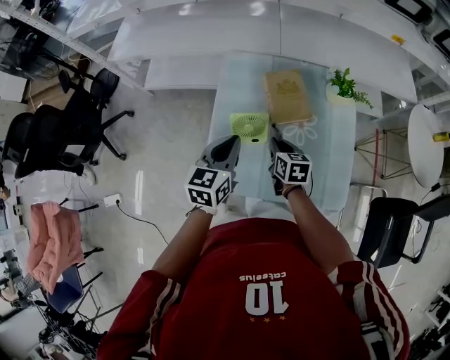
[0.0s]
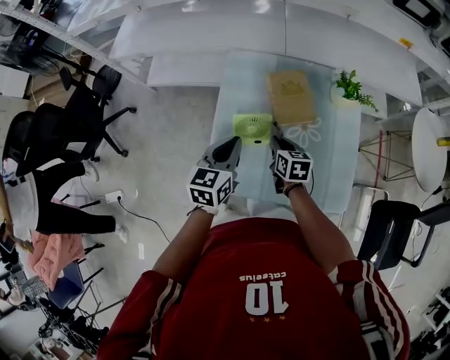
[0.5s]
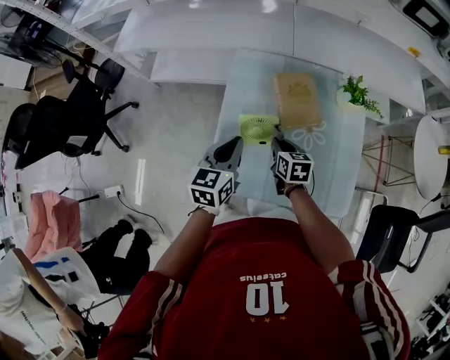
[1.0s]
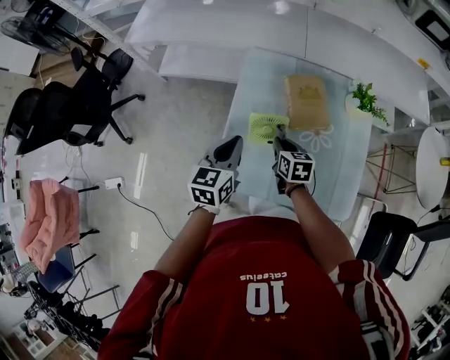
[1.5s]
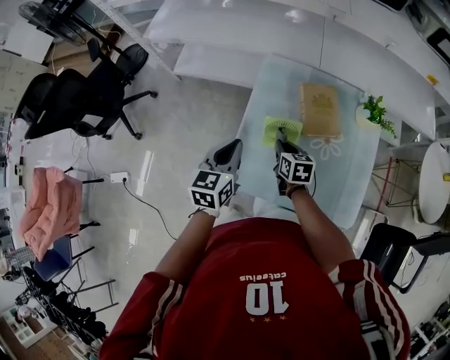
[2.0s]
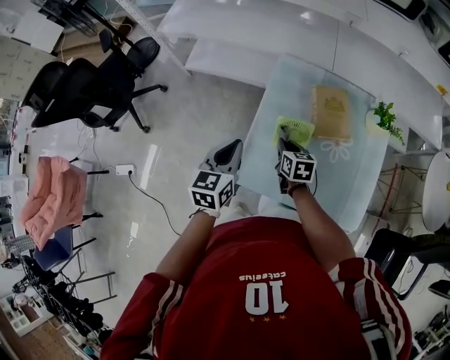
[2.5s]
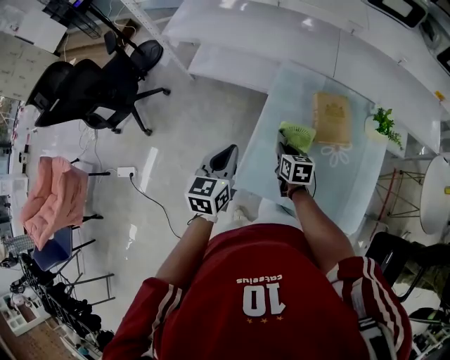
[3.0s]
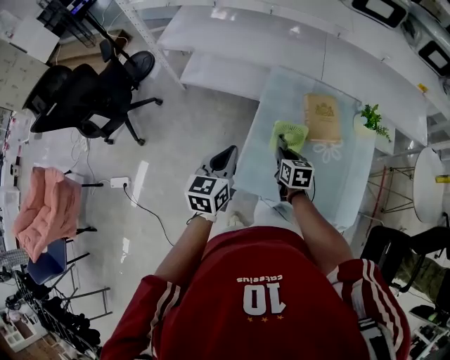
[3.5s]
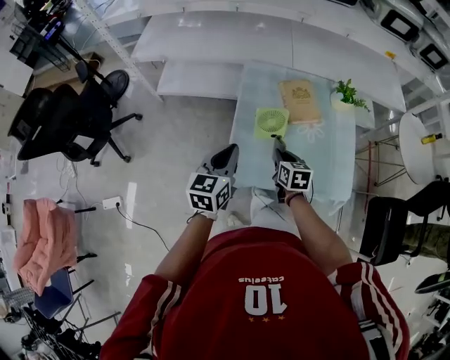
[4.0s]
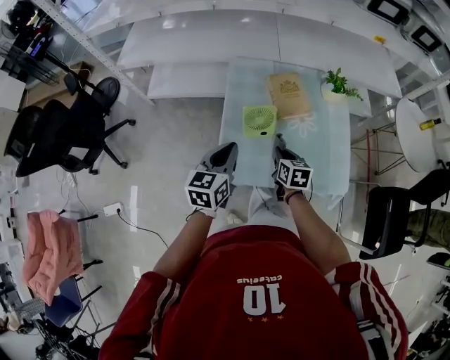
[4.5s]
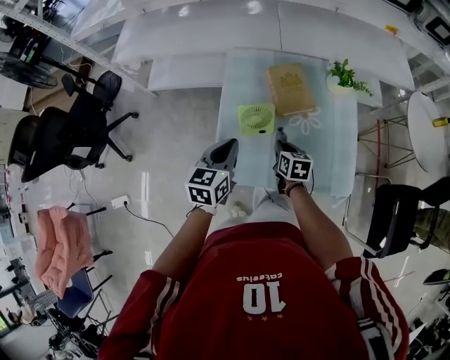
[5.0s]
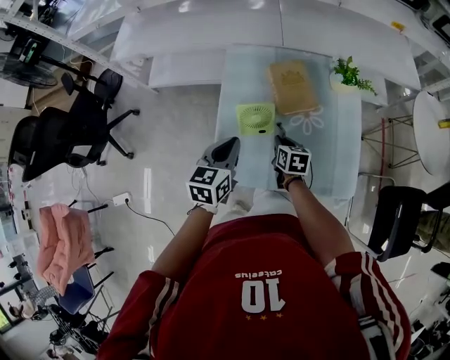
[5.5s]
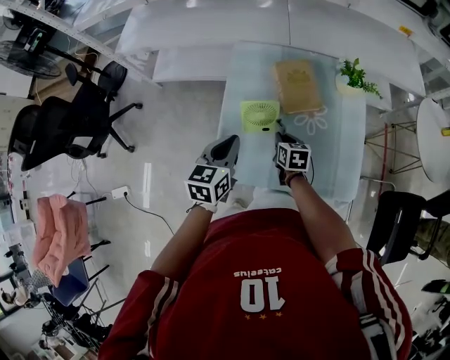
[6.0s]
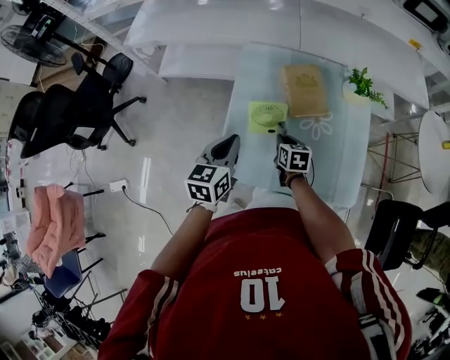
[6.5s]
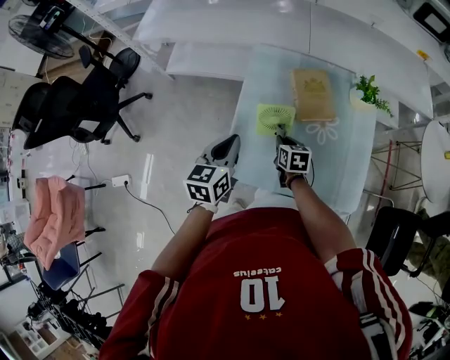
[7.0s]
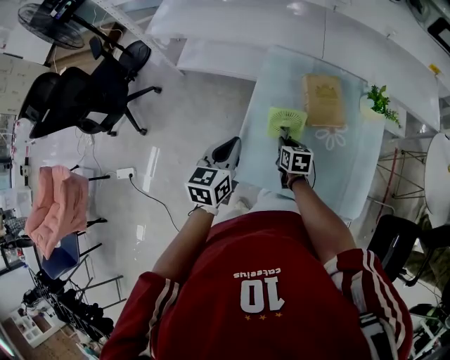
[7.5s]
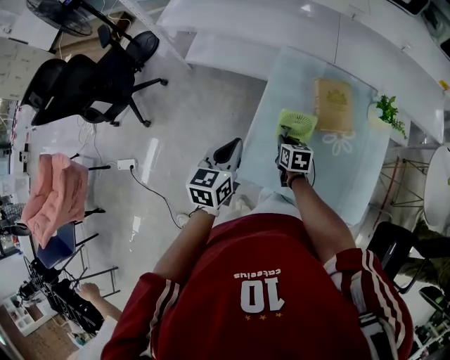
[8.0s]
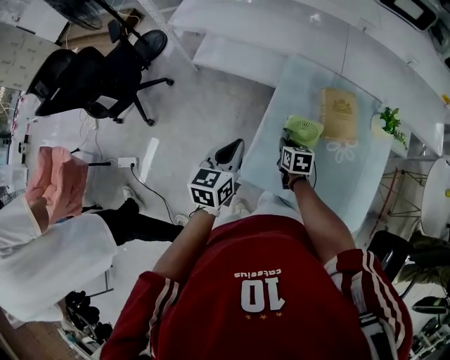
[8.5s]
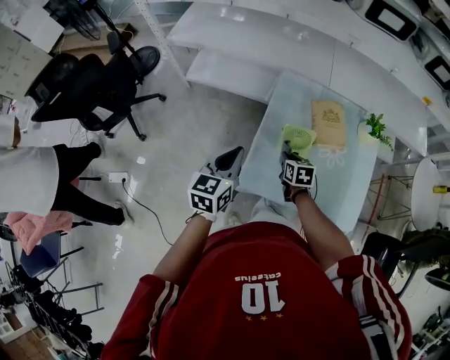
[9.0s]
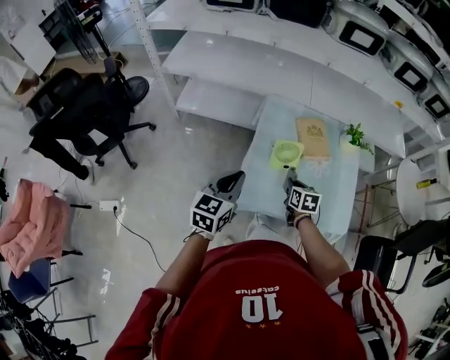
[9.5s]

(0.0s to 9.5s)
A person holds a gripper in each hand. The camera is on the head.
0.0s - 2.0s: The two grippers go roughly 10 cm to the left.
2.0s - 4.0s: The two grippers go about 10 cm backward and upward.
4.0s - 5.5s: The left gripper is displaced to the right, forward and downward by some 15 cm. Meanwhile the right gripper heads downward, forward and to the right, covering about 15 cm.
5.5s - 7.5s: Both grippers move to the left, some 10 cm.
7.5s - 9.5s: The right gripper goes approximately 10 cm upward and backward, while the left gripper moves backward, upward and to the left, some 15 cm.

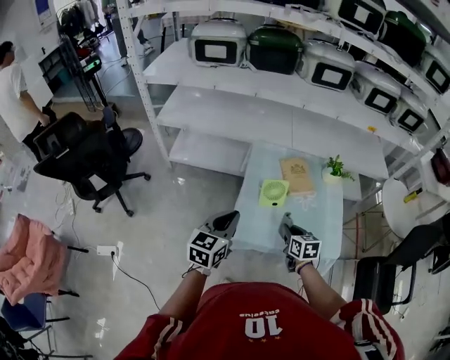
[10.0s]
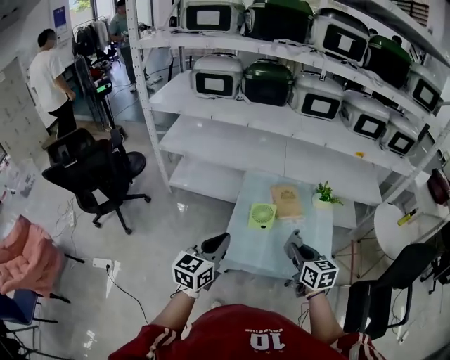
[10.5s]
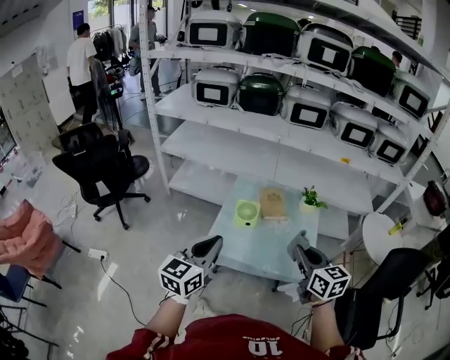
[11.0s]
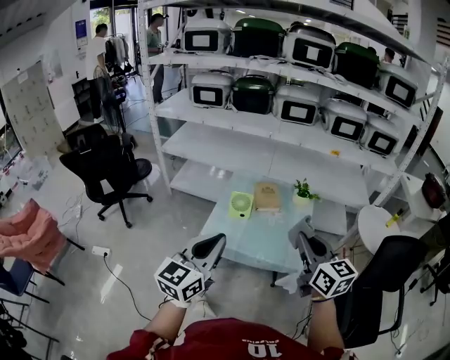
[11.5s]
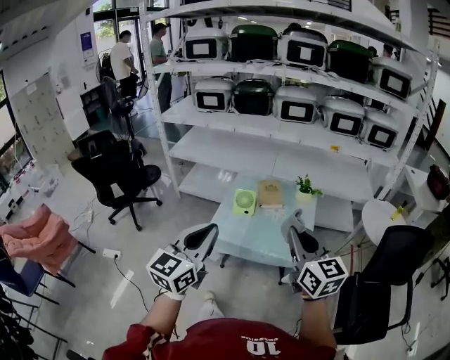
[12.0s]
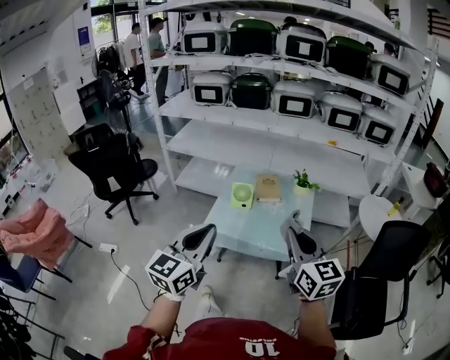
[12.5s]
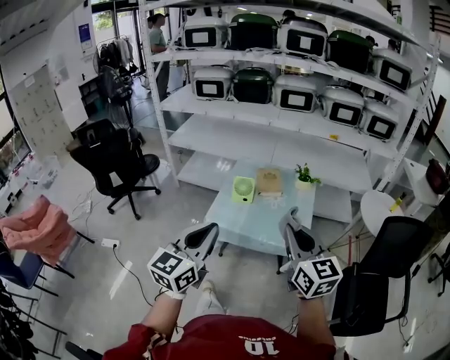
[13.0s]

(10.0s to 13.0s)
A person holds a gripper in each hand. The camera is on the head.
10.0s - 11.5s: The right gripper travels upward, backward and to the right by approximately 40 cm, and tips its fingers upward by some 40 degrees. Meanwhile the left gripper goes roughly 35 cm backward, to the right and upward, and rotates some 20 degrees.
11.5s - 13.0s: Both grippers move backward, roughly 10 cm.

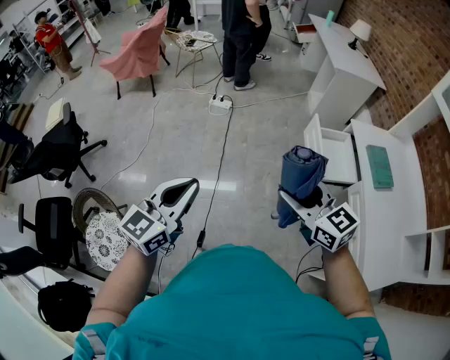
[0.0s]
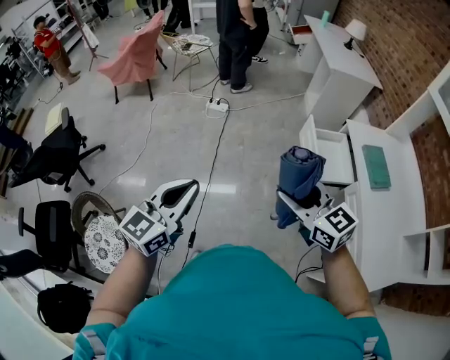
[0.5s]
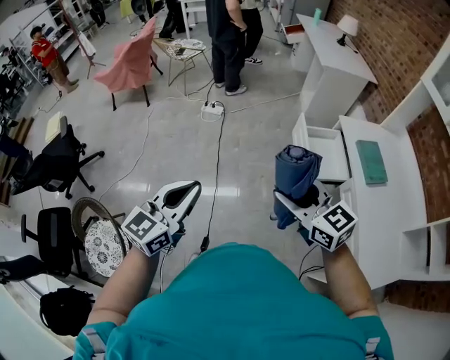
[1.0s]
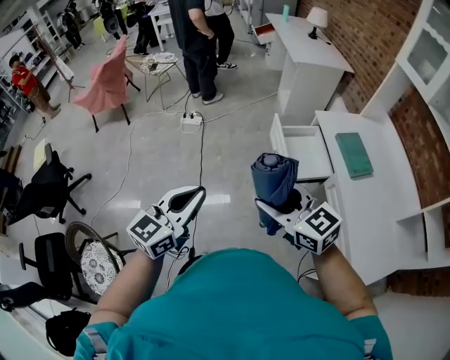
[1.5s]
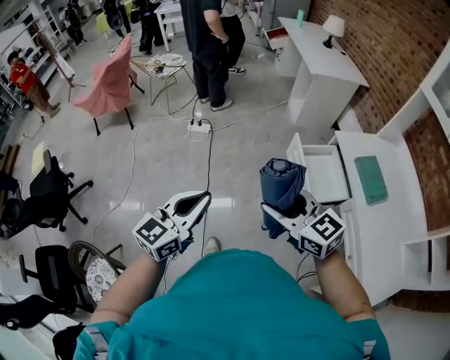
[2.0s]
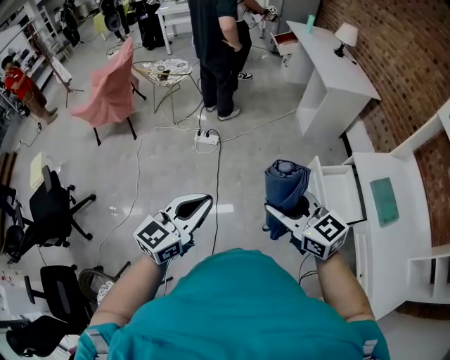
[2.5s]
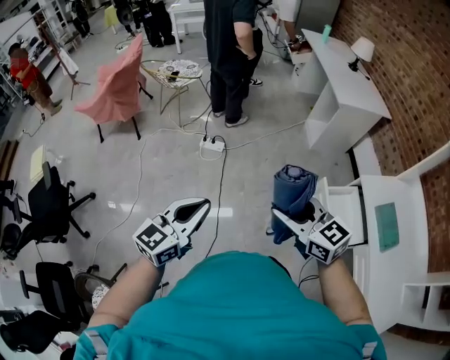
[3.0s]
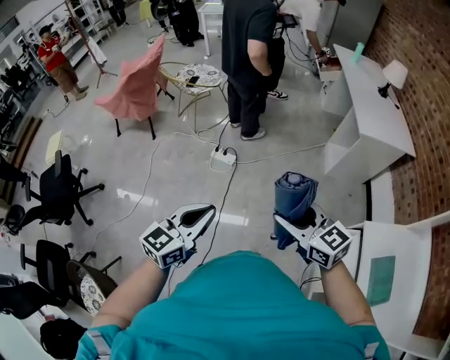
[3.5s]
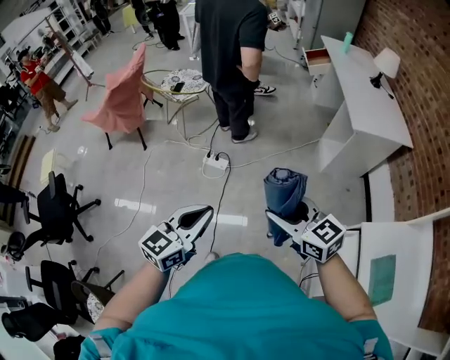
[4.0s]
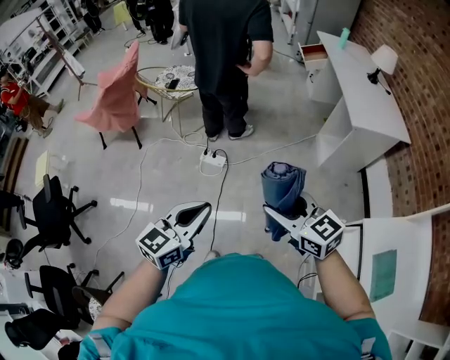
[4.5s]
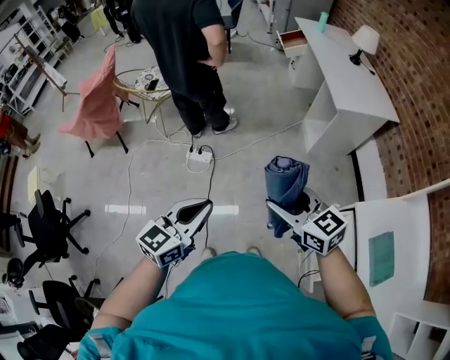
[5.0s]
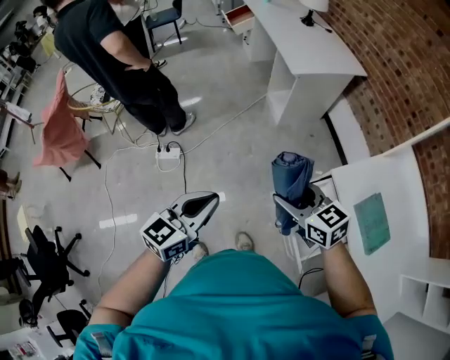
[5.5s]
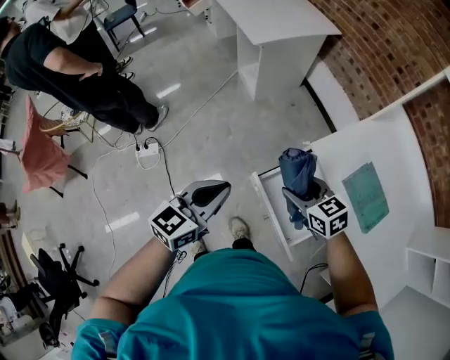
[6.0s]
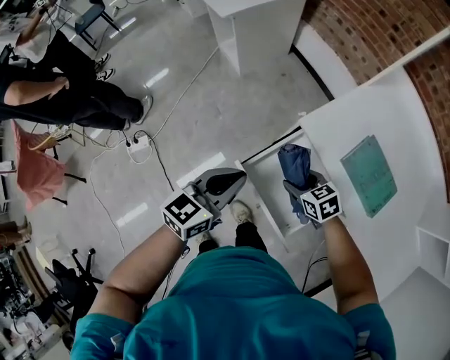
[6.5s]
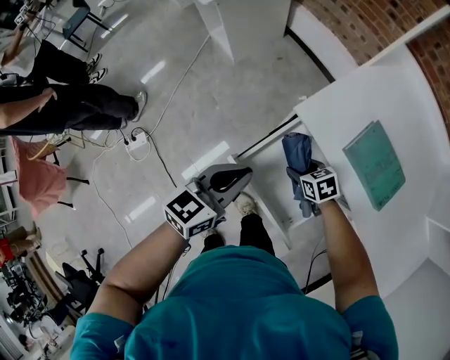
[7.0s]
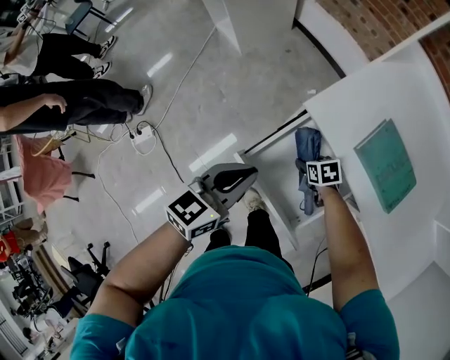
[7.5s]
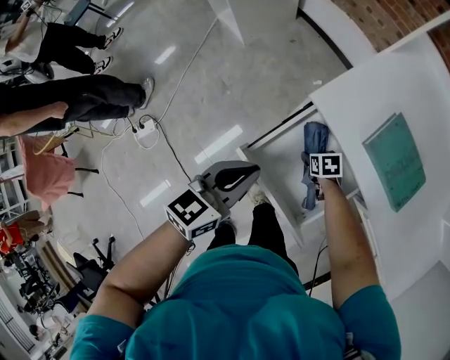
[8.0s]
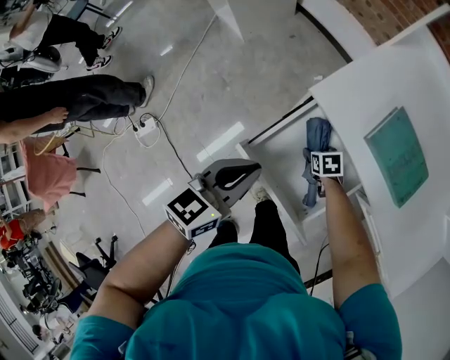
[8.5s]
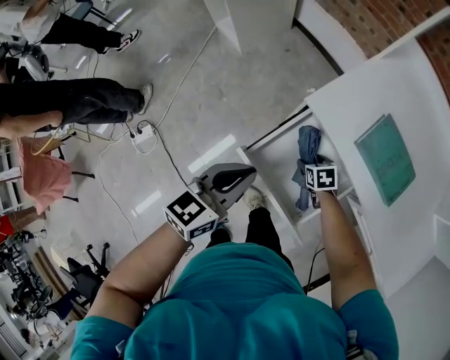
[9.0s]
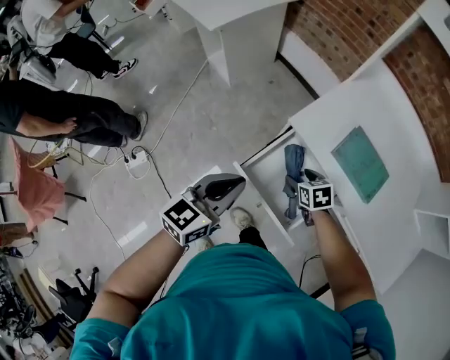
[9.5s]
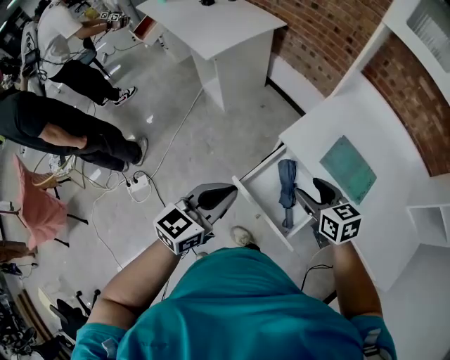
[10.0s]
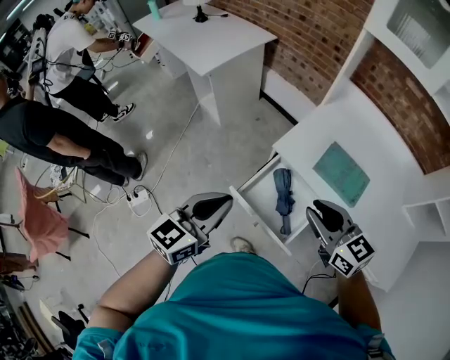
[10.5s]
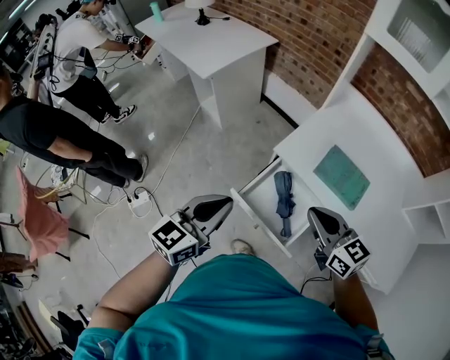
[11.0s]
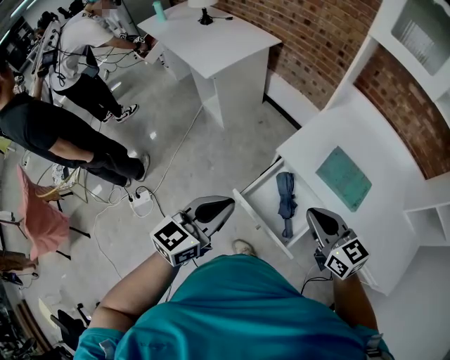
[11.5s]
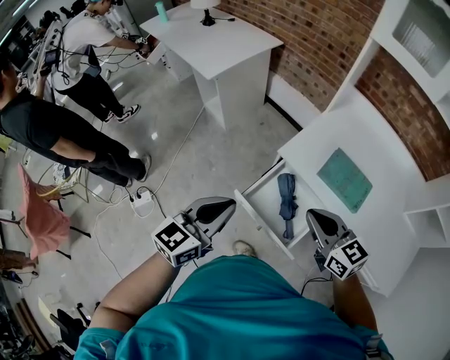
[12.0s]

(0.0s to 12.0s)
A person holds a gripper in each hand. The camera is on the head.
0.0s - 2.0s: The left gripper shifts approximately 20 cm forward and to the right. The right gripper moves forward, about 10 cm.
2.0s - 4.0s: The two grippers go some 40 cm forward.
4.0s - 6.0s: The left gripper ends up roughly 35 cm from where it was, and turns by about 40 degrees, while the right gripper moves some 35 cm, and swivels roughly 40 degrees.
6.0s - 8.0s: The right gripper heads downward and to the right, covering about 35 cm, and tilts its fingers some 30 degrees downward; the left gripper shifts some 15 cm to the right and downward.
8.0s - 10.0s: The left gripper shifts roughly 15 cm upward; the right gripper heads upward, covering roughly 40 cm, and angles its fingers upward, by about 30 degrees.
10.0s - 12.0s: The right gripper travels upward and backward by some 10 cm, and closes its fingers.

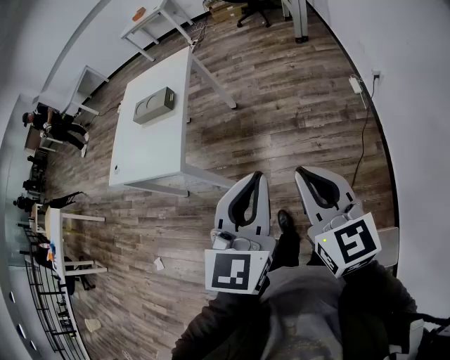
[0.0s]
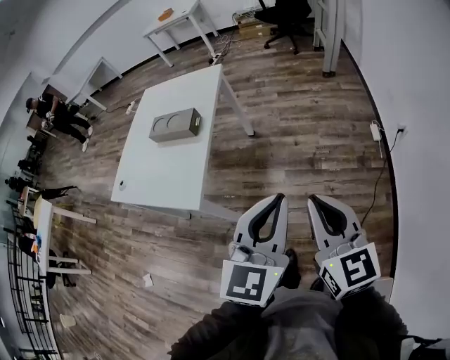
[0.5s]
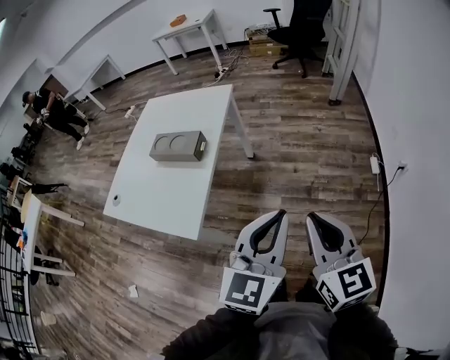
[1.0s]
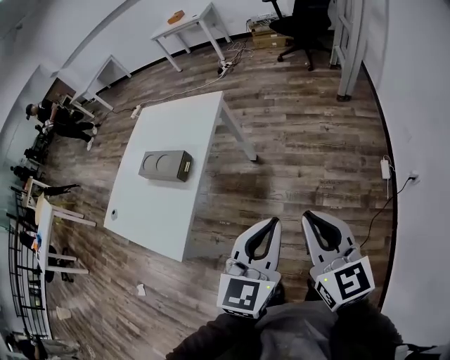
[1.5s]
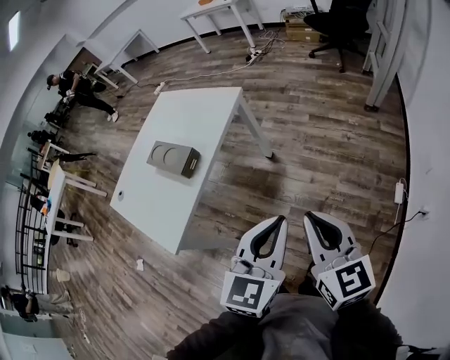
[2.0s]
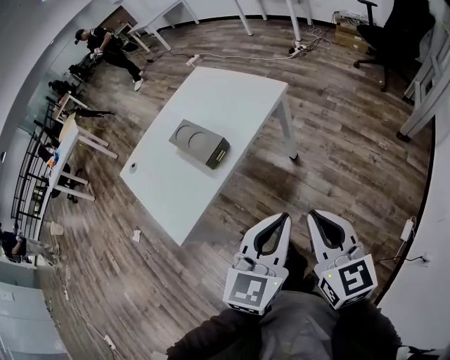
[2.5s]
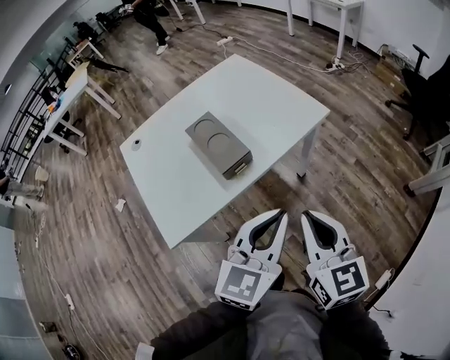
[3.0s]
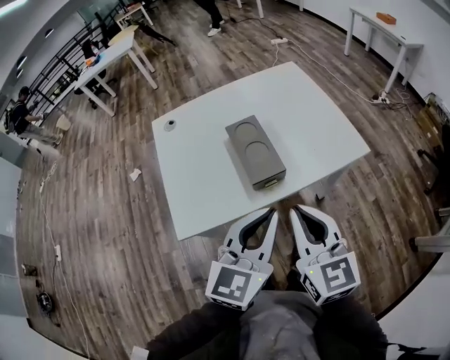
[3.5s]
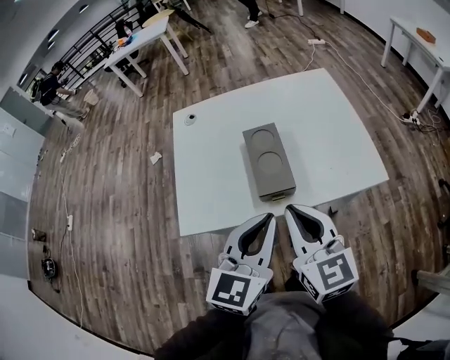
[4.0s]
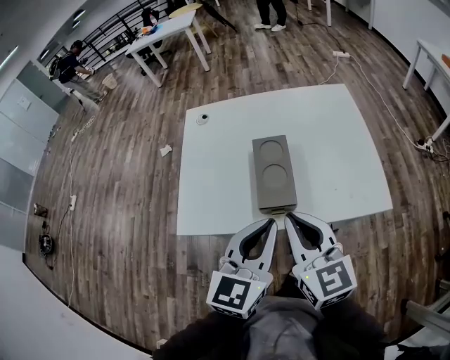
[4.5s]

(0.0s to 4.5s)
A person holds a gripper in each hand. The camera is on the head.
0.0s - 2.0s: The two grippers go about 40 cm forward. The right gripper changes its angle by roughly 20 degrees.
2.0s - 4.5s: The left gripper moves some 40 cm, and rotates about 60 degrees, while the right gripper moves about 40 cm, and rotates roughly 70 degrees.
